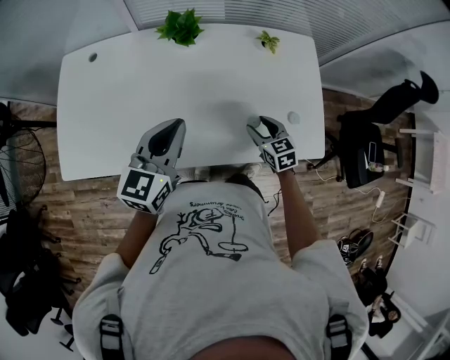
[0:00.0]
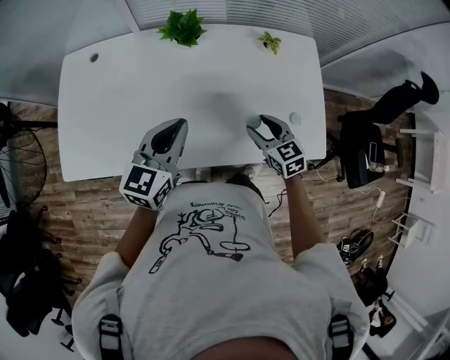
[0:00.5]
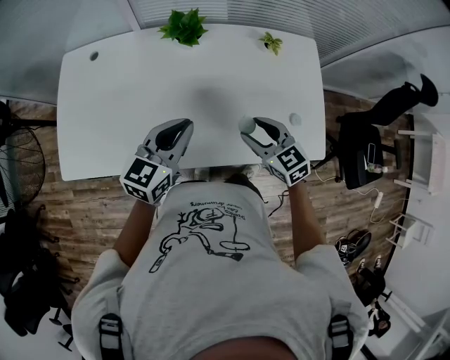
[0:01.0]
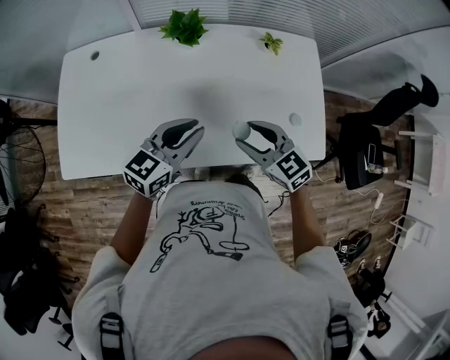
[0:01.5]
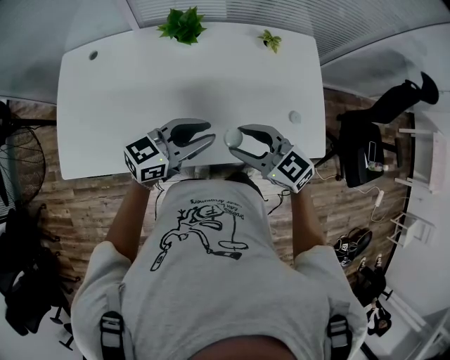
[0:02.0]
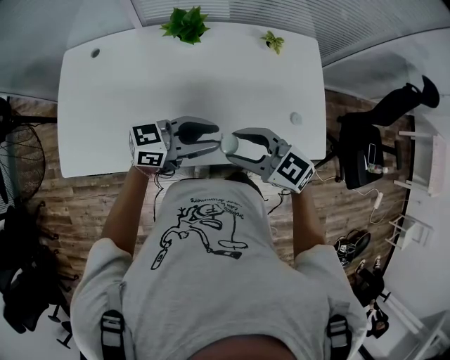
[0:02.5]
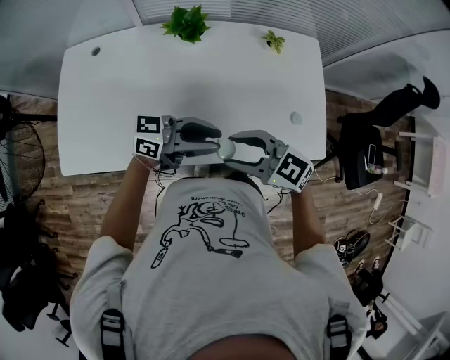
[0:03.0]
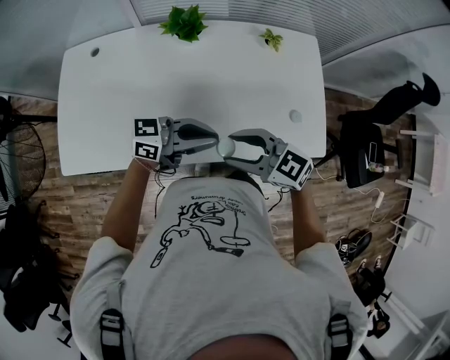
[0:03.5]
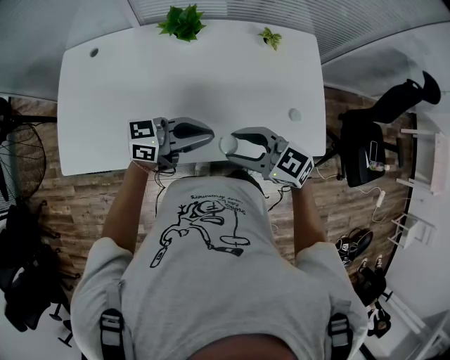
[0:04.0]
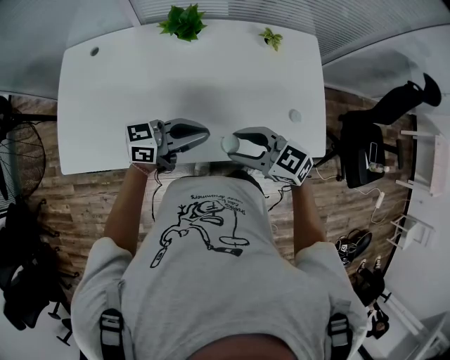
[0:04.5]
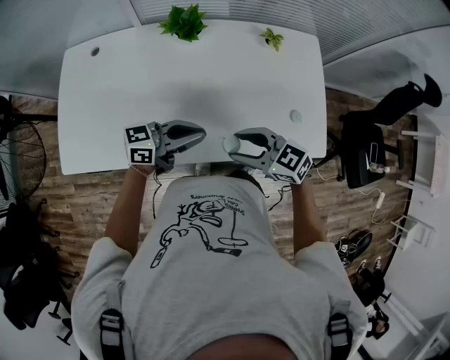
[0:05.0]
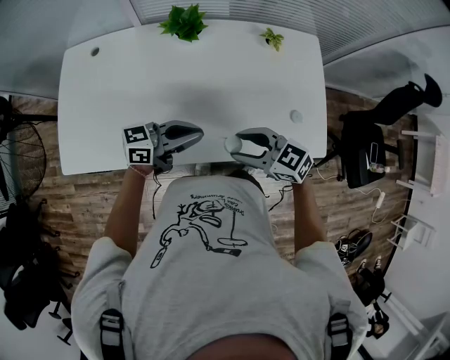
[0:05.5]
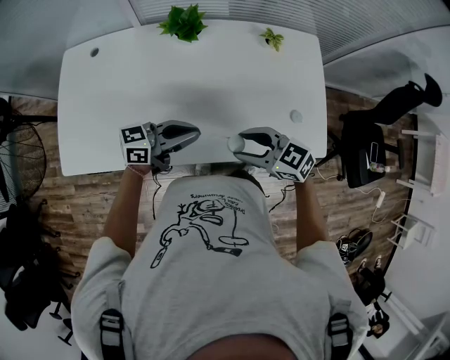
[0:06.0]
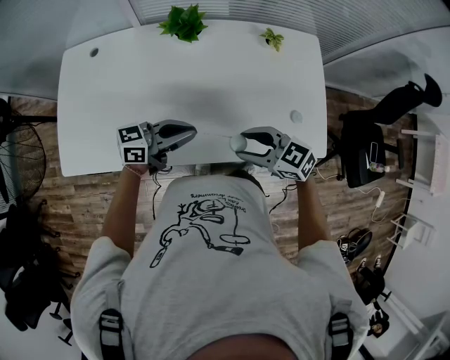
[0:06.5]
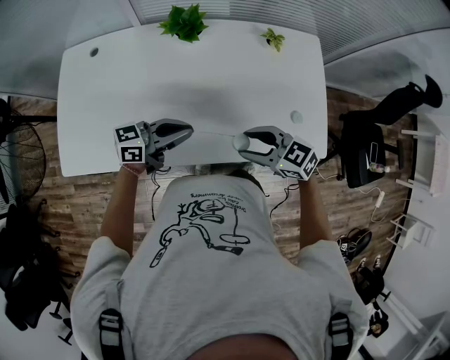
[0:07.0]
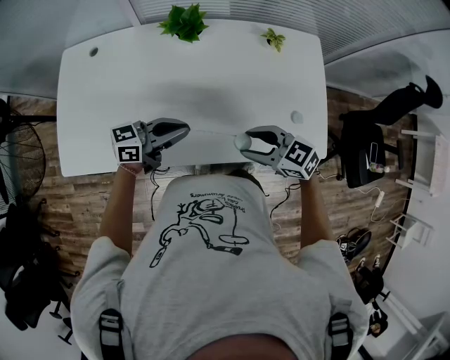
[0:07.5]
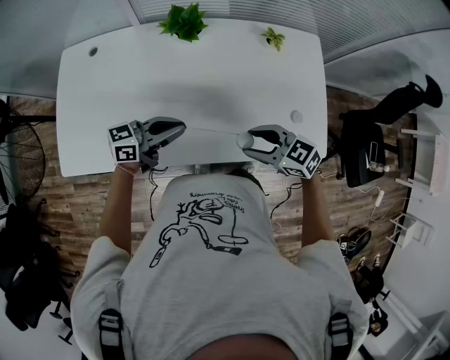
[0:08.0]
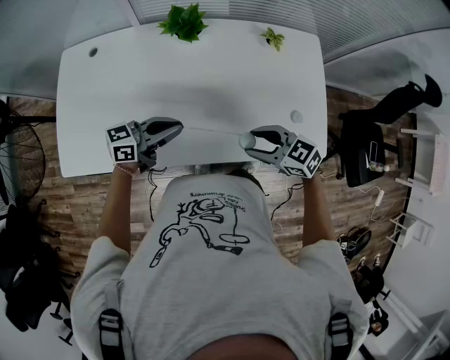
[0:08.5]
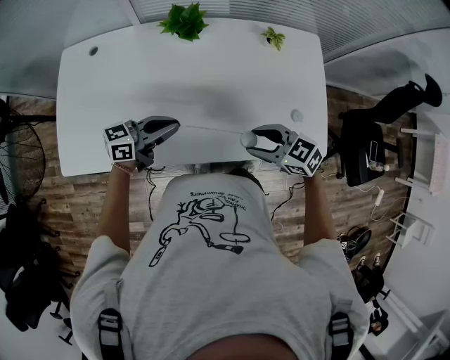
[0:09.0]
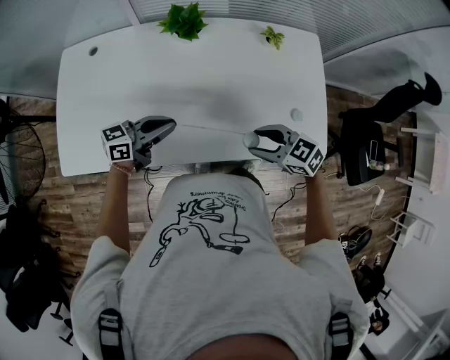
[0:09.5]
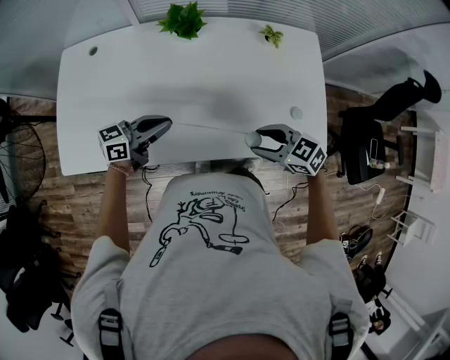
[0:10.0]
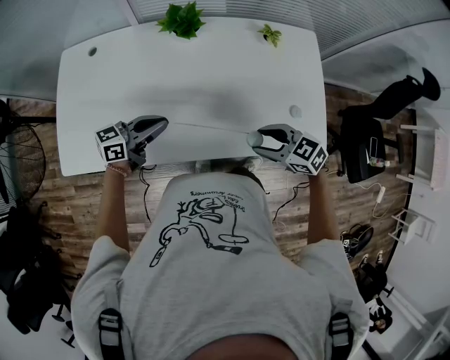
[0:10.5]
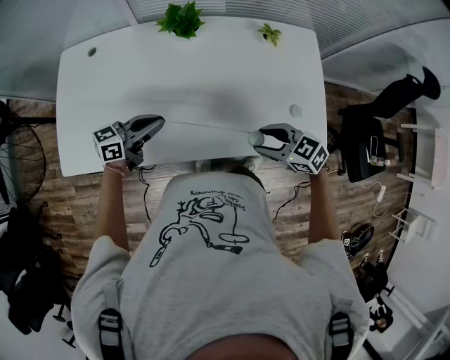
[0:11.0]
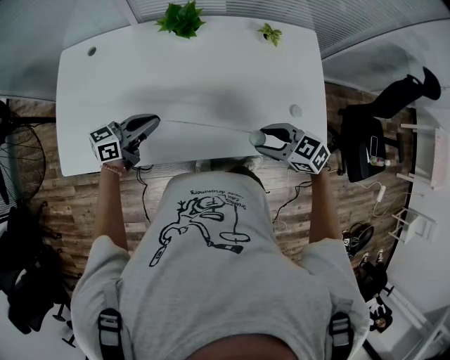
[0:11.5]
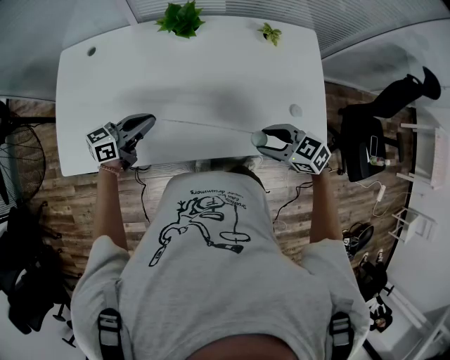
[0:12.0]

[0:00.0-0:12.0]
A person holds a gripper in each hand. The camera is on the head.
0.0 to 2.0 s: The left gripper moves some 5 cm, rotates approximately 40 degrees, and opens its fingers. The right gripper shifts roughly 15 cm upward, and swivels about 30 degrees.
2.0 to 4.0 s: The left gripper rotates approximately 20 degrees, and closes its fingers.
4.0 to 6.0 s: The left gripper ends up some 5 cm from where it was.
6.0 to 8.0 s: There are only small adjustments of the grippers.
8.0 to 10.0 s: The grippers stay close to where they were, moving slightly.
10.0 to 12.0 s: The left gripper moves roughly 5 cm.

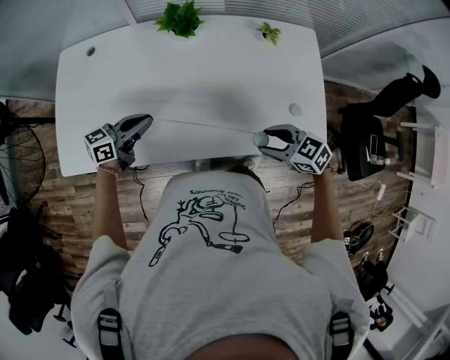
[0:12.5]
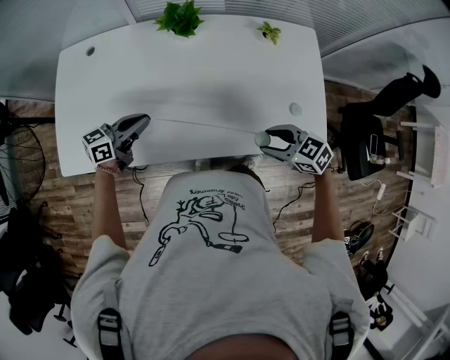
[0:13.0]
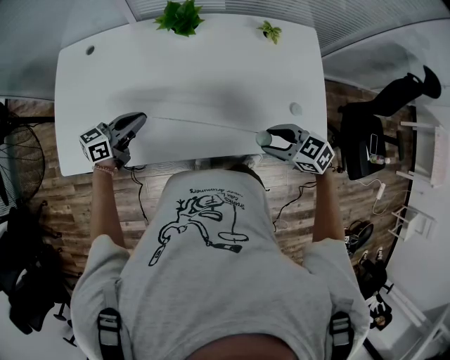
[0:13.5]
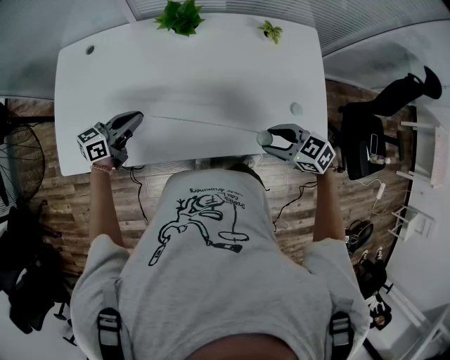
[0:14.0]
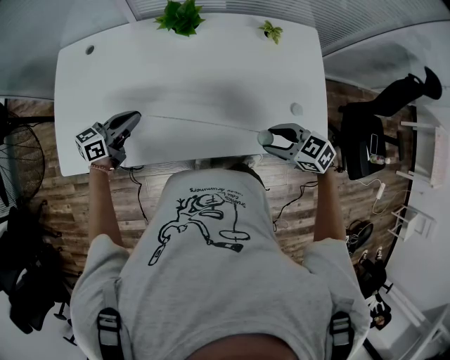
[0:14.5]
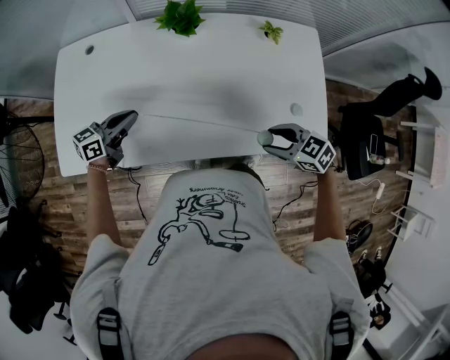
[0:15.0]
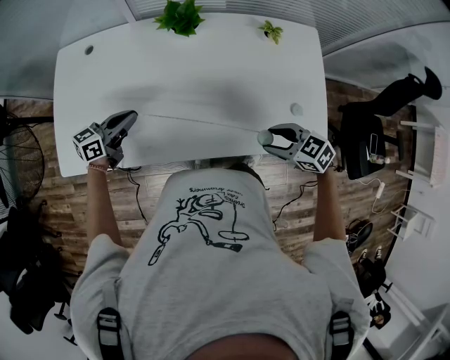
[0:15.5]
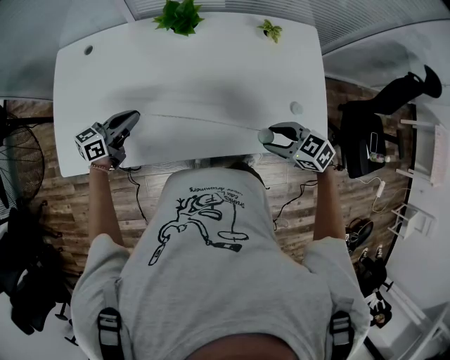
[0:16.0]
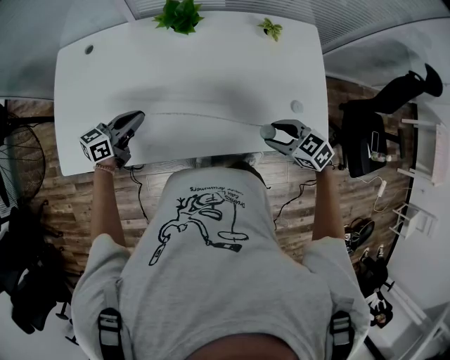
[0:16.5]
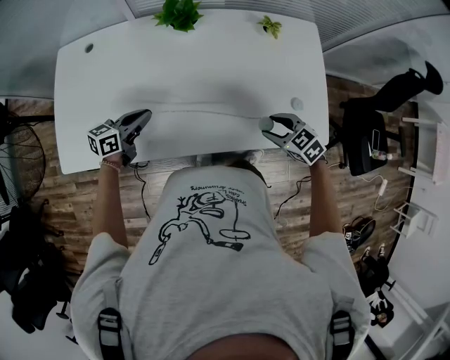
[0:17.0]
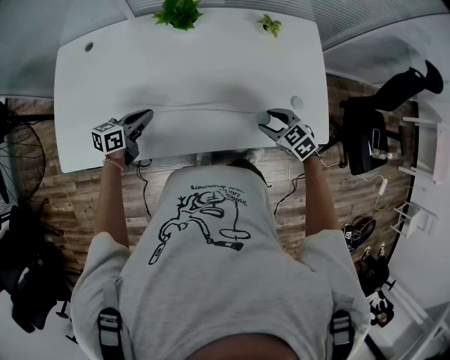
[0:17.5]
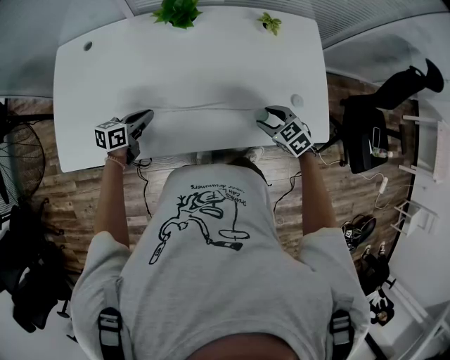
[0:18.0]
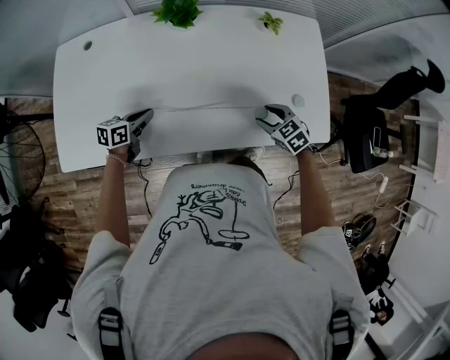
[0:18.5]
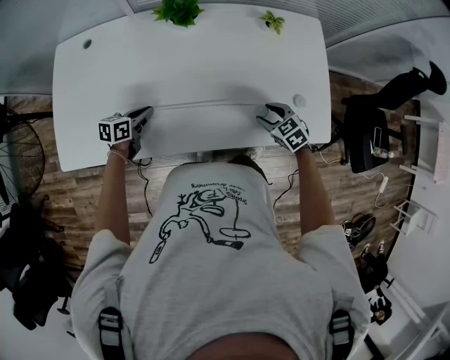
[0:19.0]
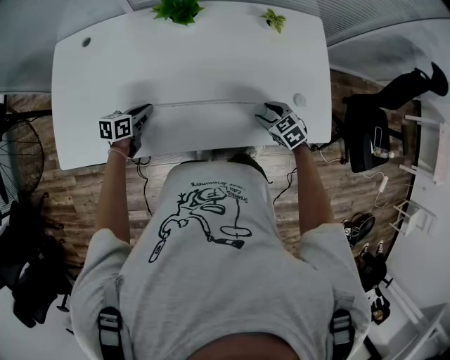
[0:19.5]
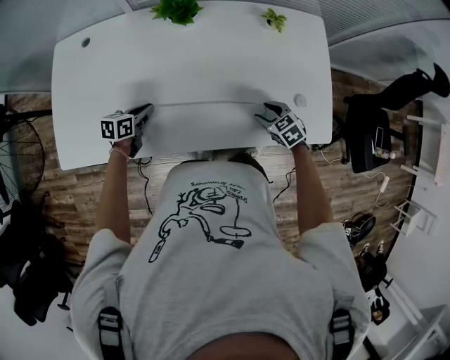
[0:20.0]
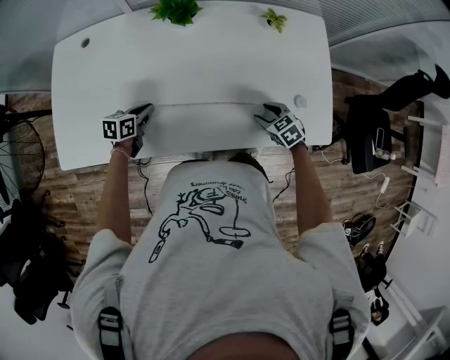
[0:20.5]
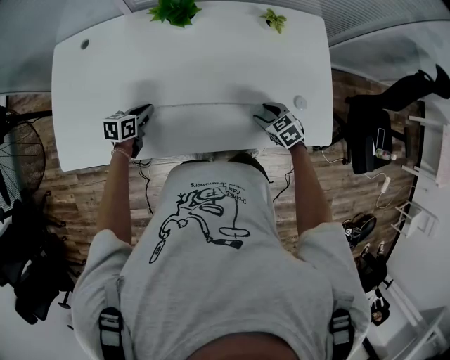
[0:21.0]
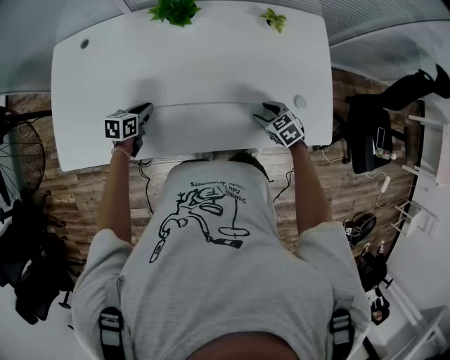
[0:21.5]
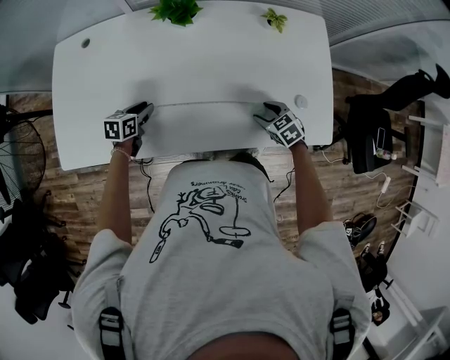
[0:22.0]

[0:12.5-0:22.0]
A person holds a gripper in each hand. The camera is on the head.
12.5 to 14.5 s: The grippers make only small movements.
14.5 to 16.5 s: There are only small adjustments of the grippers.
16.5 to 18.0 s: The grippers both shift downward by roughly 5 cm.
18.0 to 20.0 s: The left gripper ends up some 5 cm from where it was. The right gripper heads downward, covering some 5 cm.
20.0 to 22.0 s: The left gripper opens.

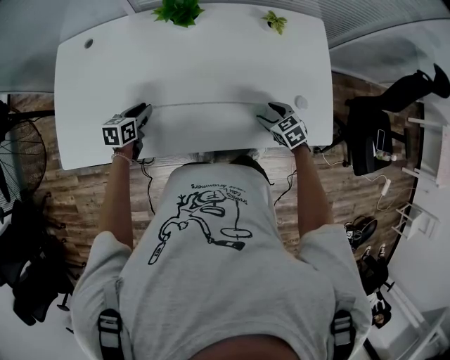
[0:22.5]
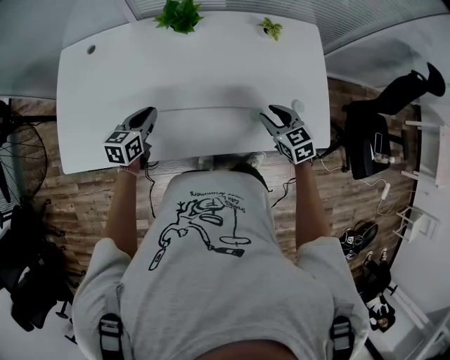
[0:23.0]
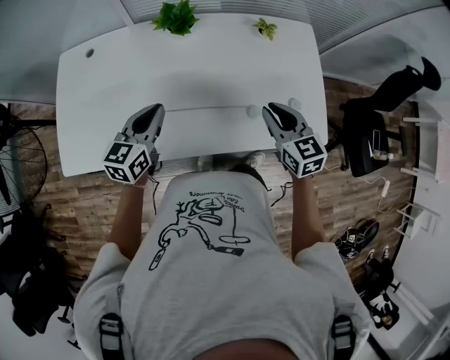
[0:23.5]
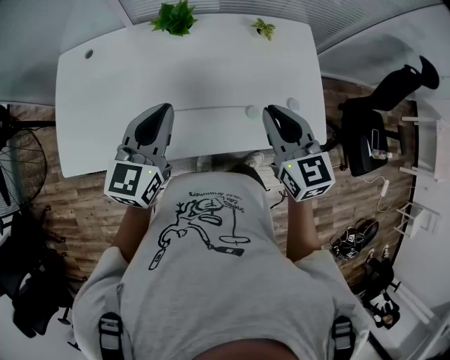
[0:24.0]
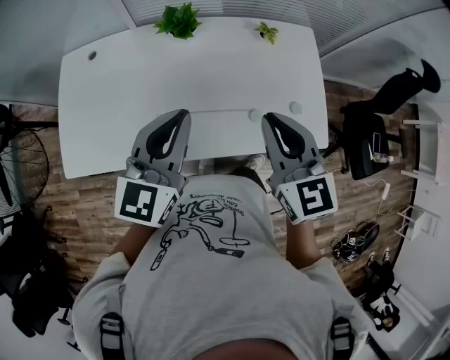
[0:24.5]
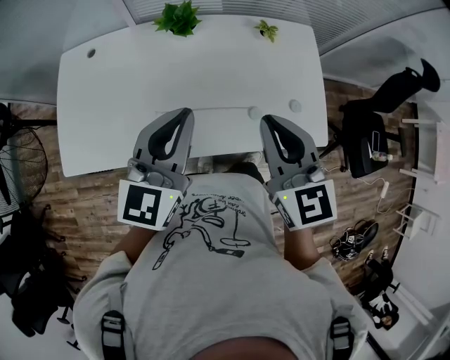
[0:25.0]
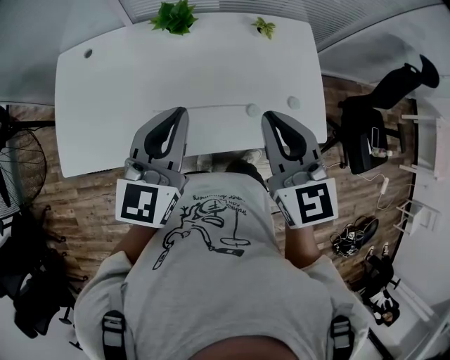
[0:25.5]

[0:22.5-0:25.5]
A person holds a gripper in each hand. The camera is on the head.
22.5 to 24.0 s: The left gripper goes some 30 cm upward and to the right, angles its fingers upward, by some 30 degrees, and closes. The right gripper travels upward by roughly 30 cm, angles its fingers upward, by approximately 30 degrees, and closes up.
24.0 to 25.5 s: The two grippers go about 5 cm upward.

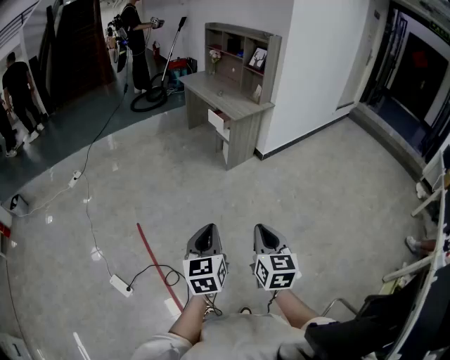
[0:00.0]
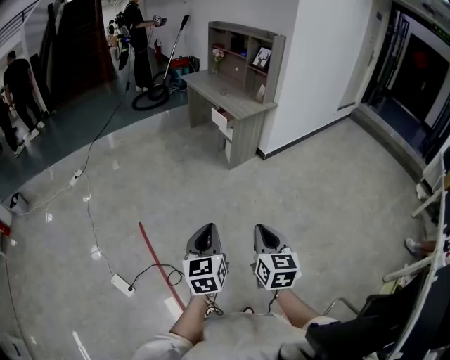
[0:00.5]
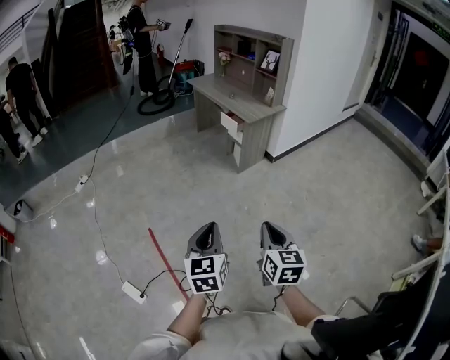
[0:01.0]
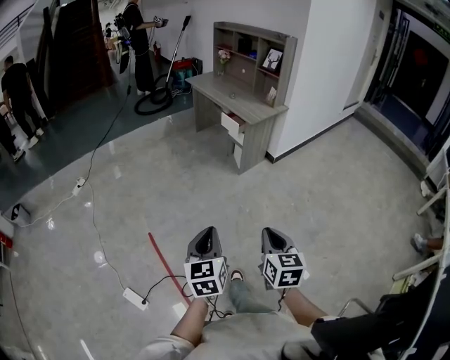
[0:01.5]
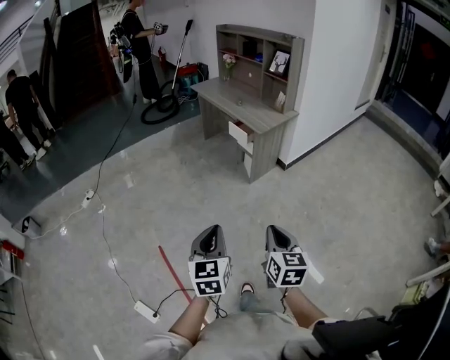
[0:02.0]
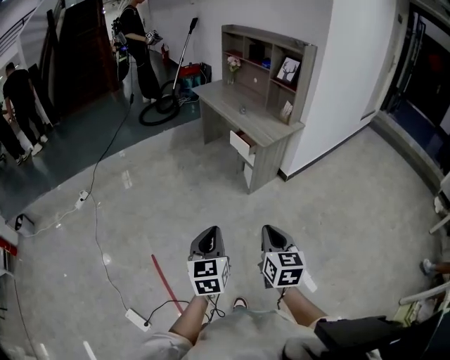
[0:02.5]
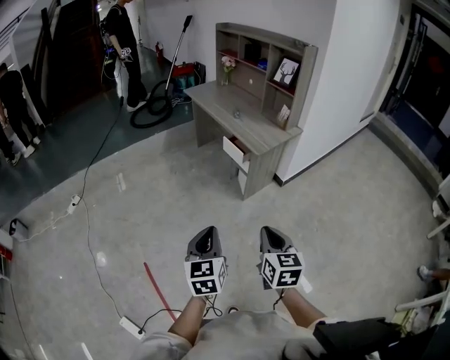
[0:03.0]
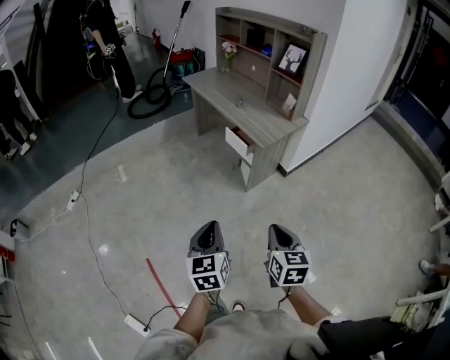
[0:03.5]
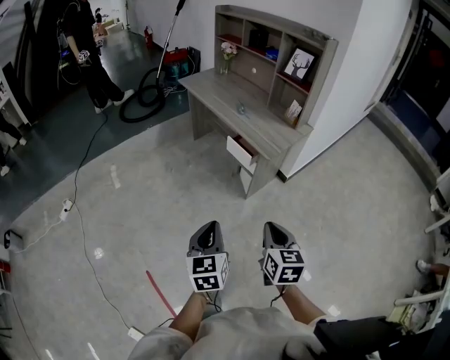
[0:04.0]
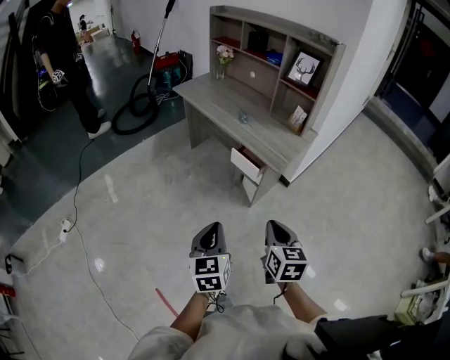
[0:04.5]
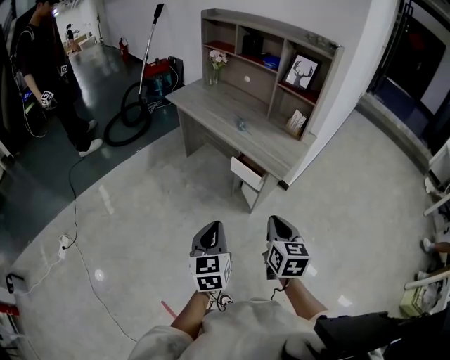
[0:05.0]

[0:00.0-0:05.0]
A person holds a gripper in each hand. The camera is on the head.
0.0 to 2.5 s: The two grippers go approximately 30 cm forward.
2.5 to 5.0 s: The pair of grippers is taken forward, about 40 cm.
